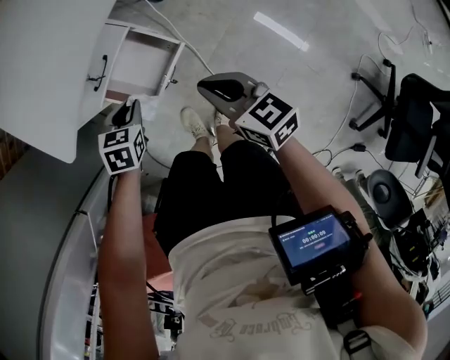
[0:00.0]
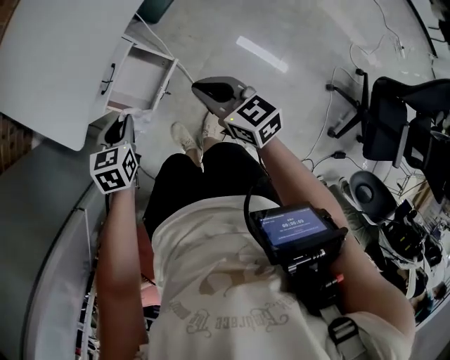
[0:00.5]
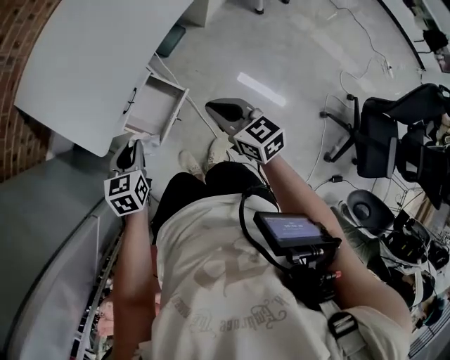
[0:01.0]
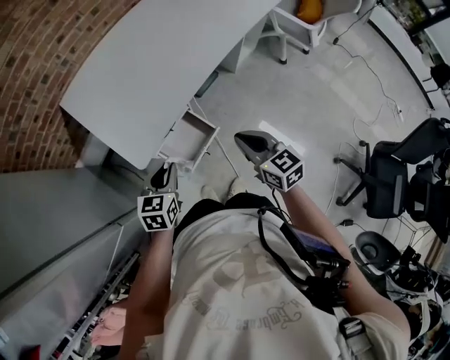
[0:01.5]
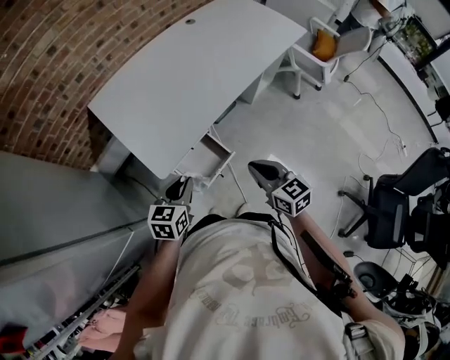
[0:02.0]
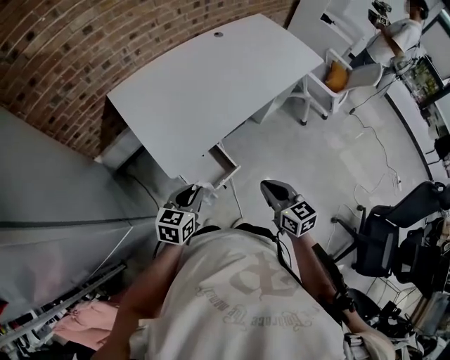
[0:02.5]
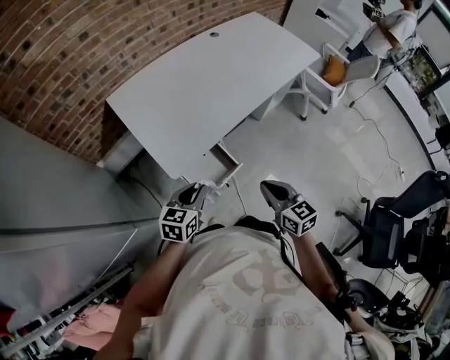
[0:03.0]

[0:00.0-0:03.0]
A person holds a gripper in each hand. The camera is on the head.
0:00.0 to 0:01.5: Both grippers move upward, about 25 cm. The left gripper changes its angle by roughly 30 degrees.
0:01.5 to 0:03.0: The left gripper shifts by roughly 5 cm. Meanwhile the right gripper moves backward, approximately 5 cm.

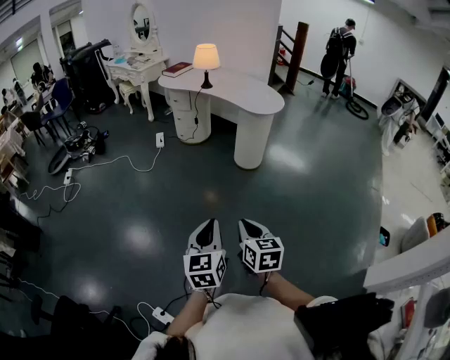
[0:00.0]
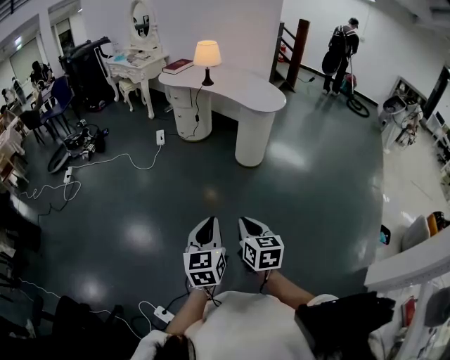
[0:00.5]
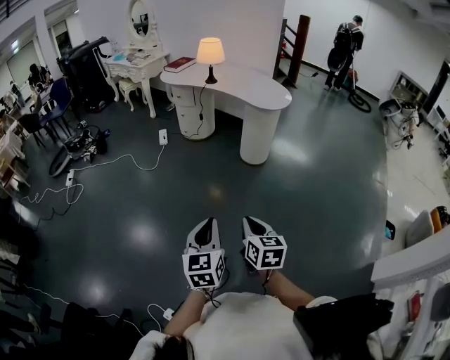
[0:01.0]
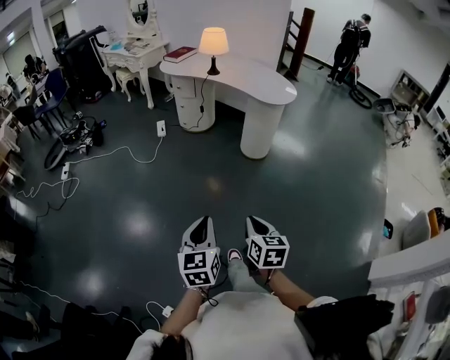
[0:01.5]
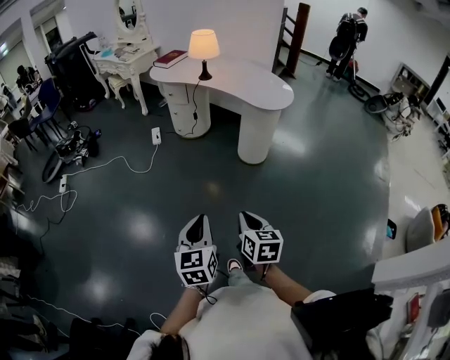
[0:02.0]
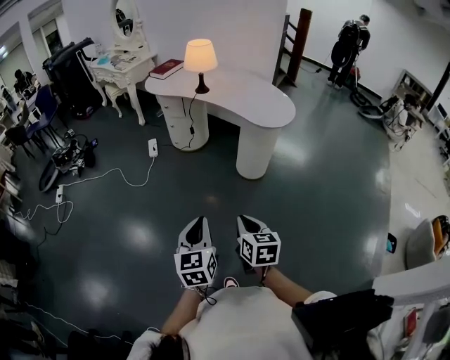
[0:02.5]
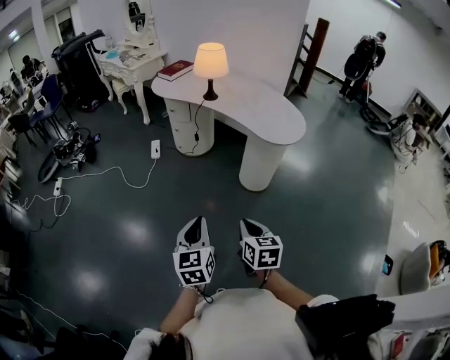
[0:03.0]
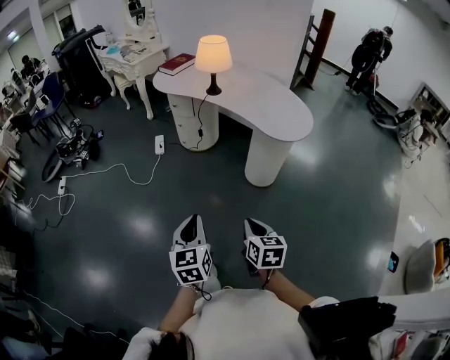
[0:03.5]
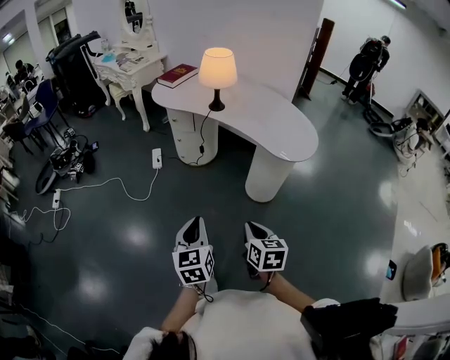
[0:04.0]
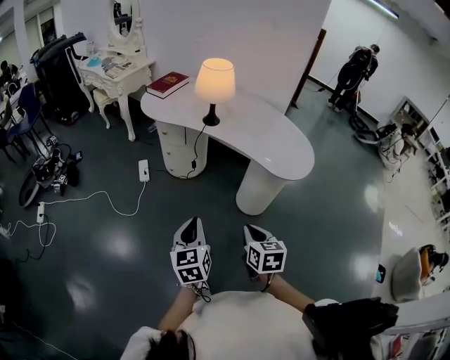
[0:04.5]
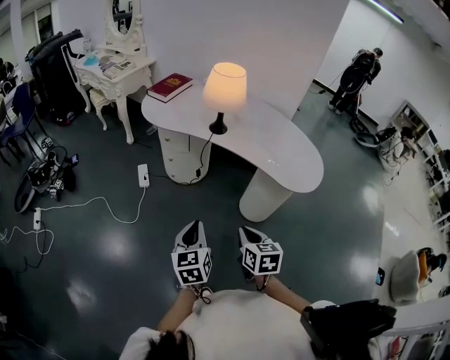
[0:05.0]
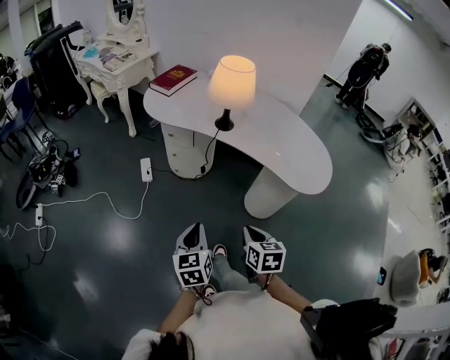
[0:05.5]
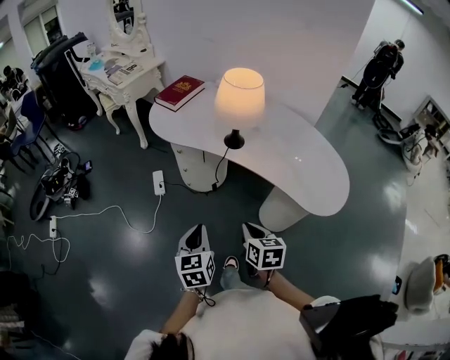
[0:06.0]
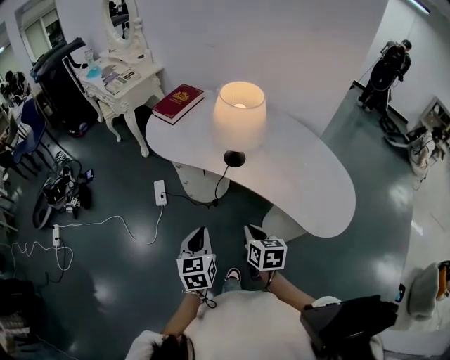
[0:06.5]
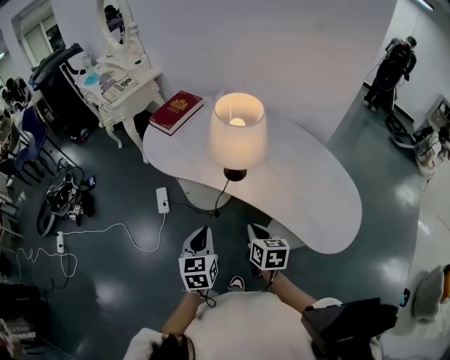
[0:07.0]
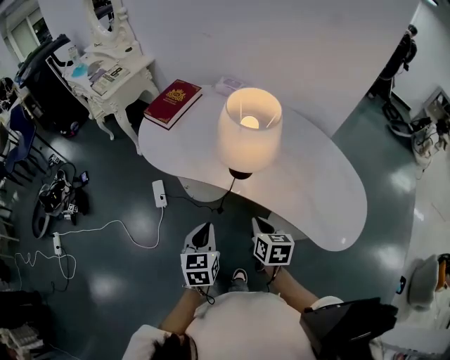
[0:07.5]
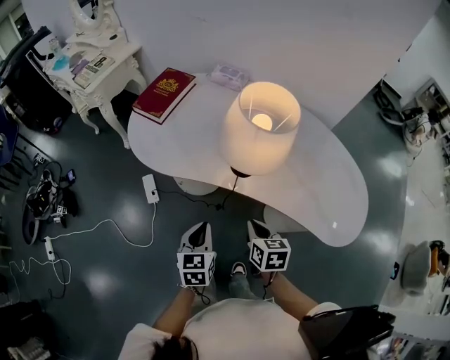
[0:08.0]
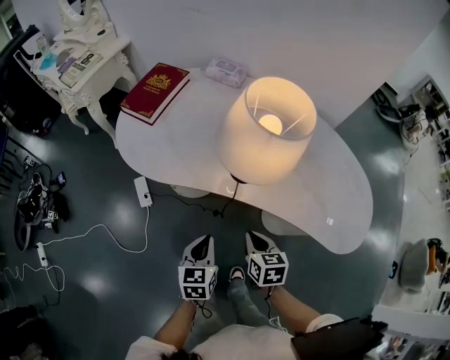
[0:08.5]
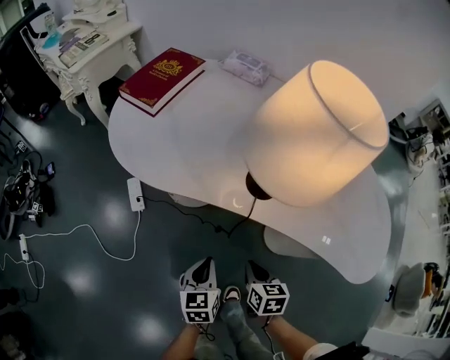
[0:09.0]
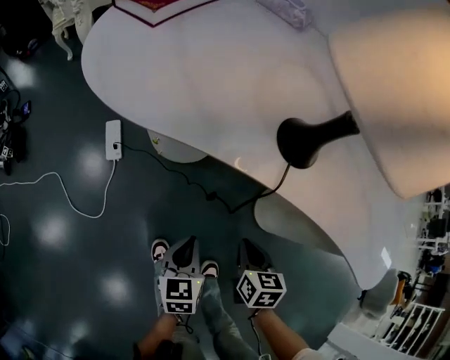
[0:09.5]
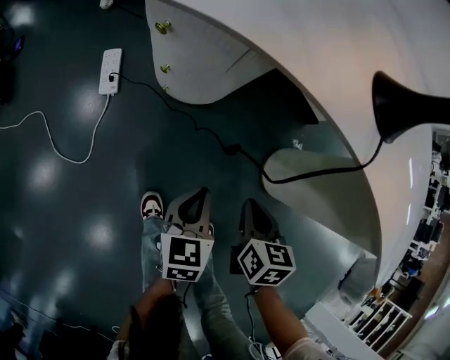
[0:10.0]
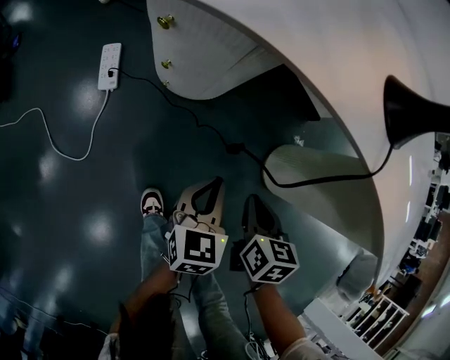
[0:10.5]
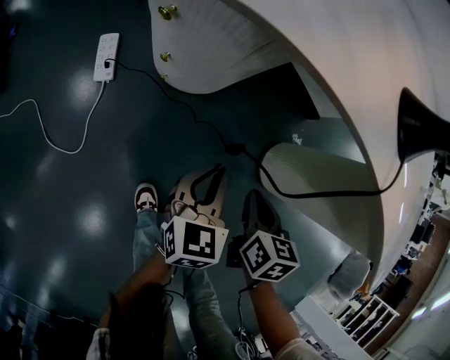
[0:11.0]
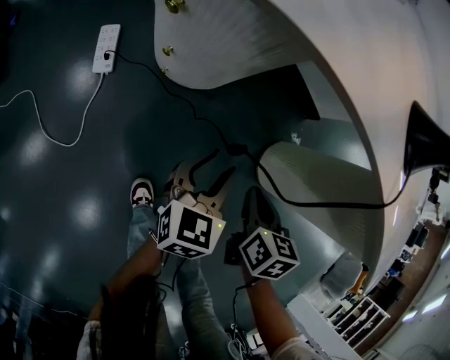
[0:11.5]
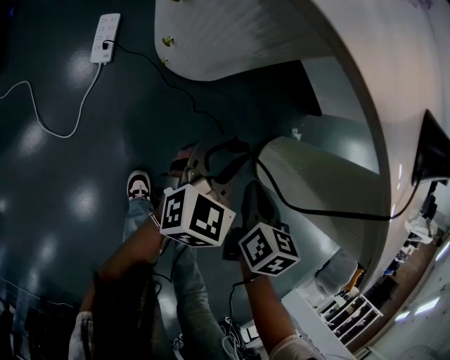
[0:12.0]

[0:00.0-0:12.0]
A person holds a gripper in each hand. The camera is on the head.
0:00.0 to 0:02.0: The right gripper travels forward by approximately 15 cm. Meanwhile the left gripper heads forward and to the left, covering approximately 20 cm.
0:02.0 to 0:04.0: Both grippers move forward, some 30 cm.
0:04.0 to 0:06.0: Both grippers move forward, roughly 30 cm.
0:06.0 to 0:08.0: Both grippers move forward, some 25 cm.
0:08.0 to 0:10.0: Both grippers travel together downward, some 35 cm.
0:10.0 to 0:12.0: The left gripper moves forward, roughly 10 cm, turns by roughly 30 degrees, and opens its fingers.

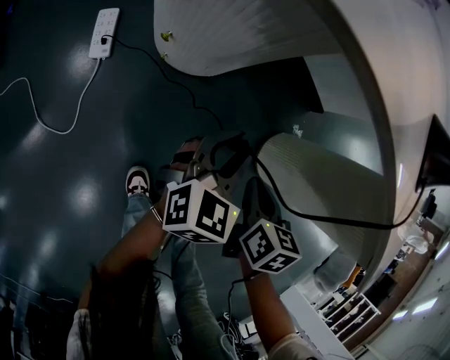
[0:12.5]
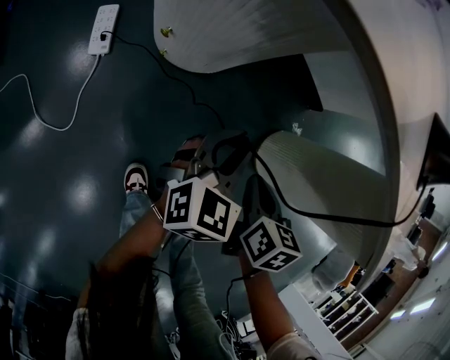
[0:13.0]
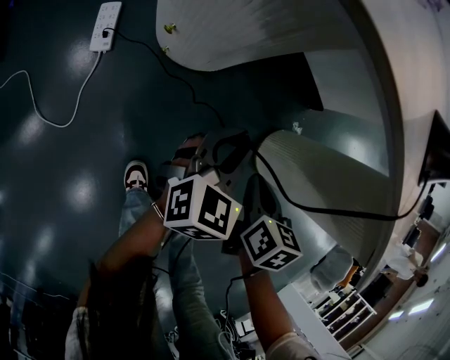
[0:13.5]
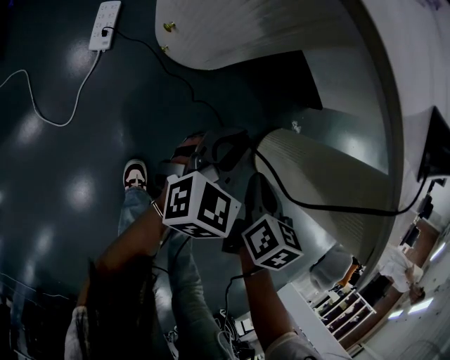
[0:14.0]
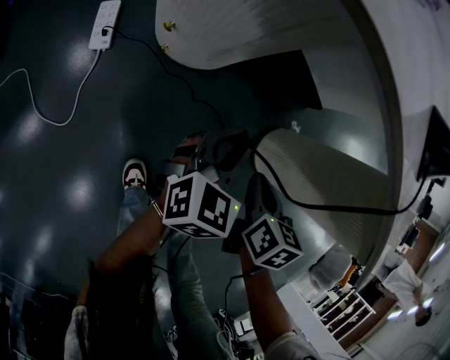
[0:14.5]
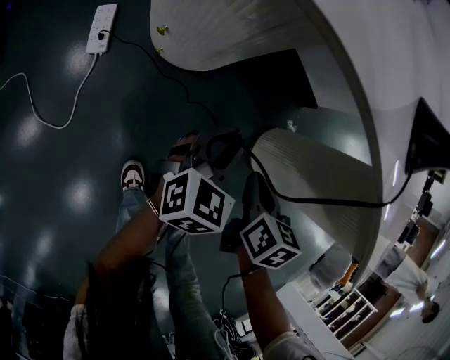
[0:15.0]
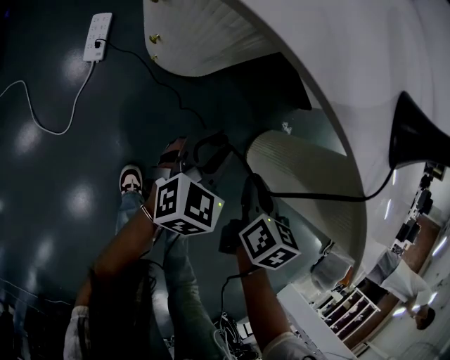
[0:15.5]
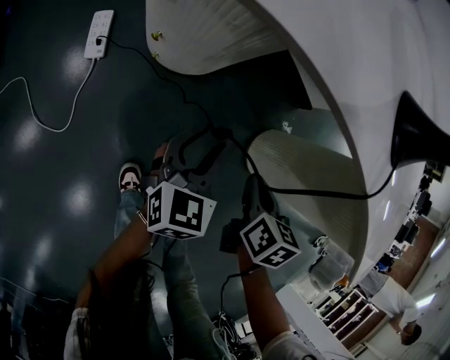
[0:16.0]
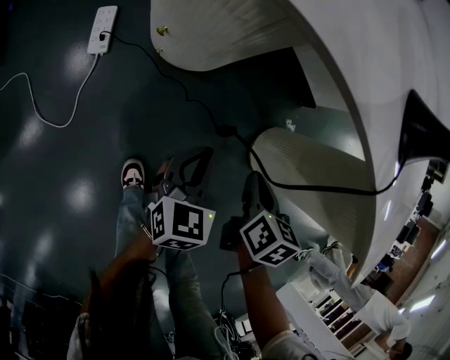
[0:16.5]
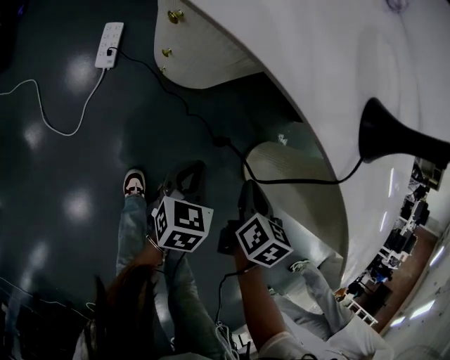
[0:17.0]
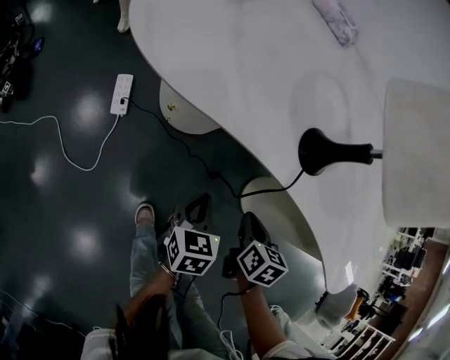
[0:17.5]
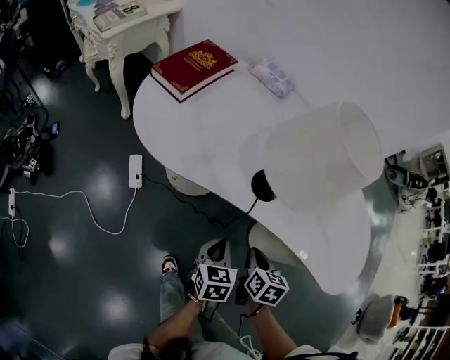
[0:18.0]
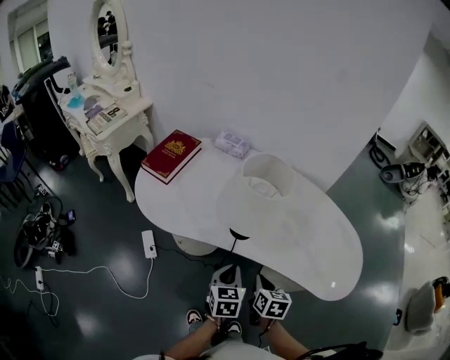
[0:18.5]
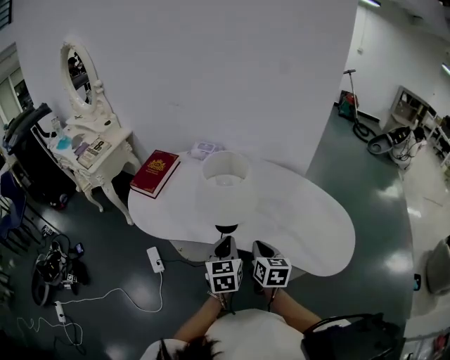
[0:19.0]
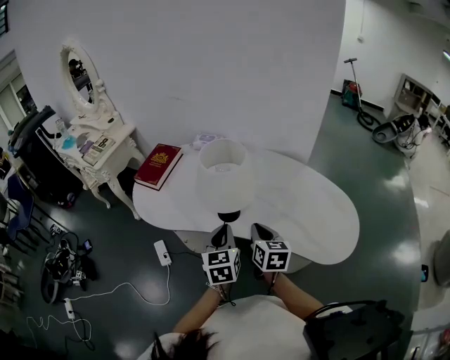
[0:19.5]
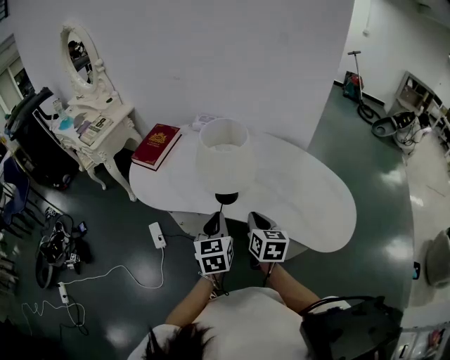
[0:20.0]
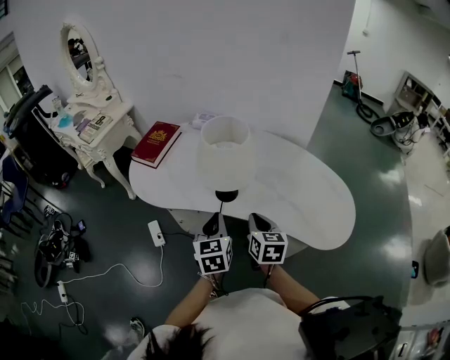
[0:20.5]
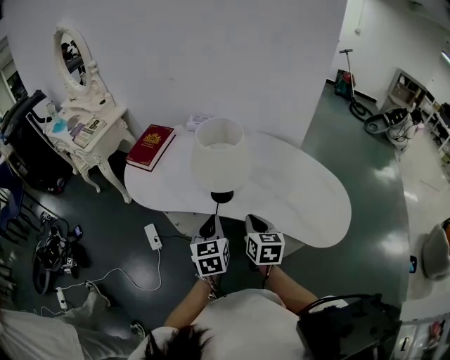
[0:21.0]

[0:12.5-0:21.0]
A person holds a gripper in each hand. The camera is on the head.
0:12.5 to 0:14.5: The two grippers keep their place.
0:14.5 to 0:16.5: The left gripper travels backward by approximately 5 cm, and opens, then closes again.
0:16.5 to 0:19.0: The grippers both shift upward by some 50 cm. The right gripper turns by roughly 30 degrees.
0:19.0 to 0:21.0: The left gripper ends up some 5 cm from where it was.

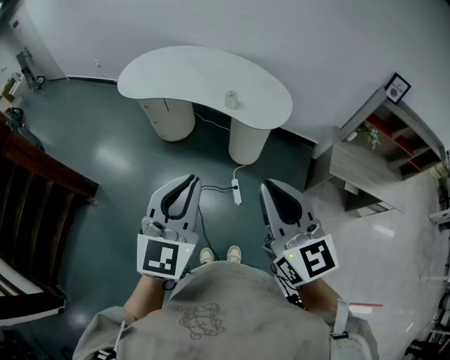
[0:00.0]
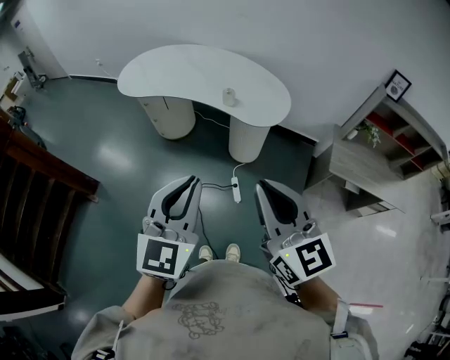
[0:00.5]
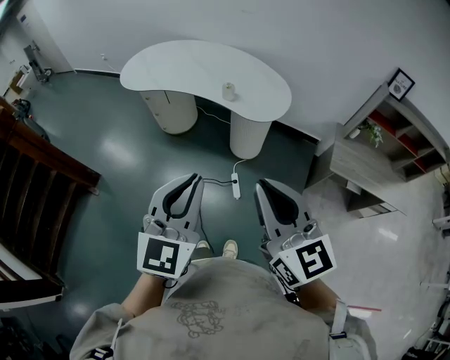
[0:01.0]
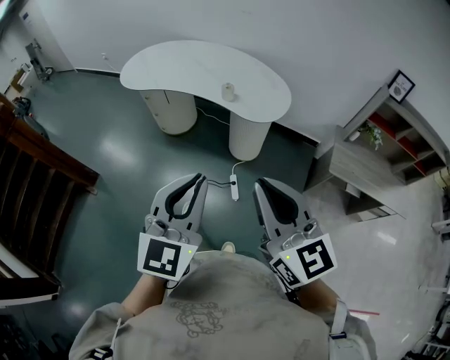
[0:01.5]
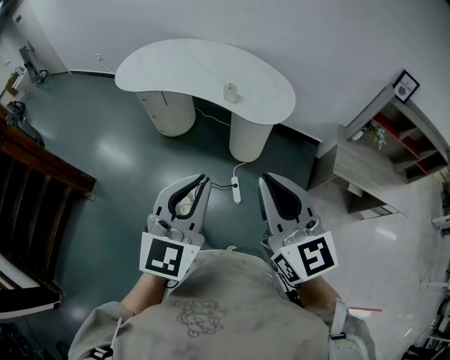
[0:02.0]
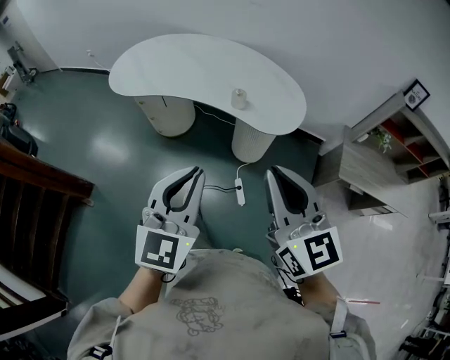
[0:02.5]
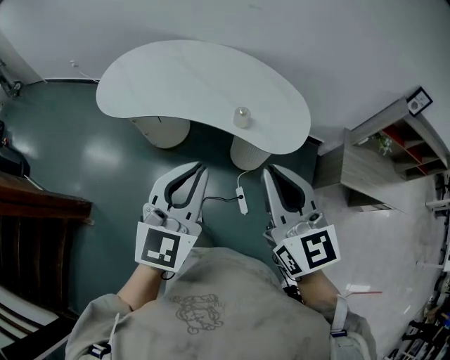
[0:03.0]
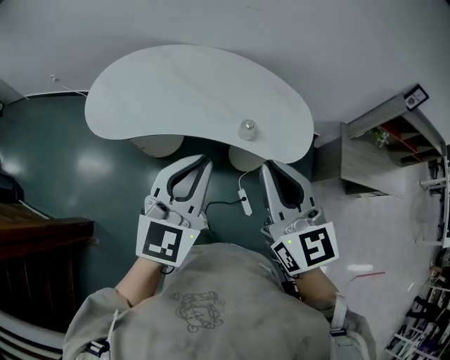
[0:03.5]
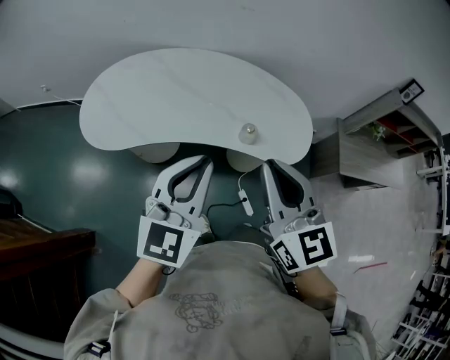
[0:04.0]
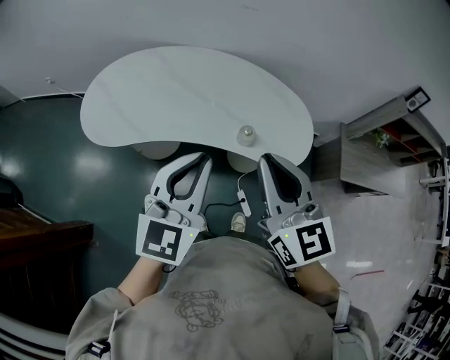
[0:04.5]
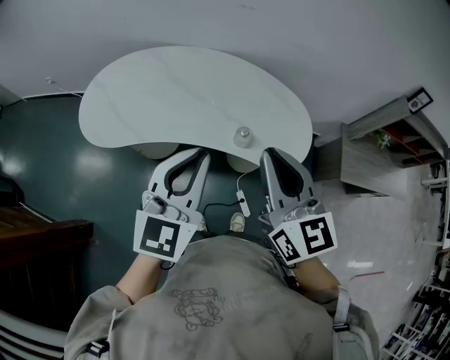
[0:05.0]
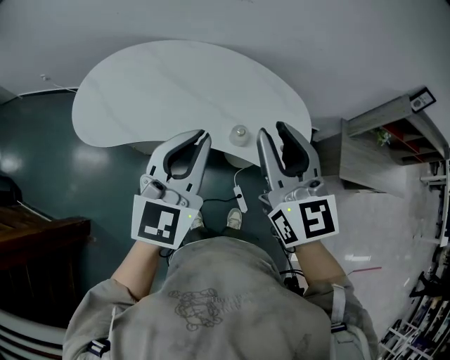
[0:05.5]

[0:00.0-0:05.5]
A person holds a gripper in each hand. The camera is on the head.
0:00.0 to 0:02.0: The left gripper changes place by roughly 5 cm. Meanwhile the right gripper changes place by about 5 cm.
0:02.0 to 0:03.5: The two grippers go approximately 40 cm forward and to the left.
0:03.5 to 0:05.5: Both grippers travel together forward, roughly 10 cm.
